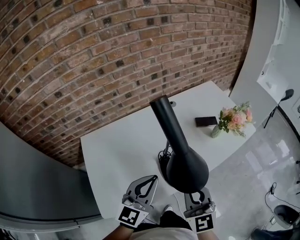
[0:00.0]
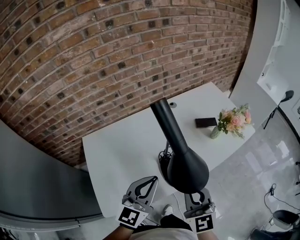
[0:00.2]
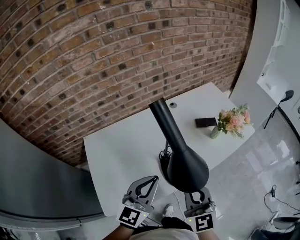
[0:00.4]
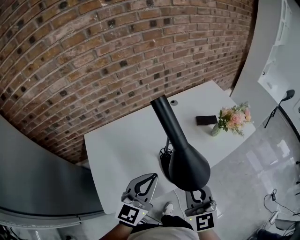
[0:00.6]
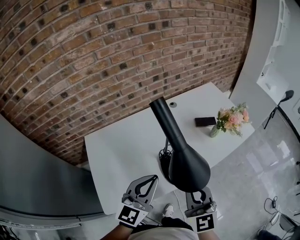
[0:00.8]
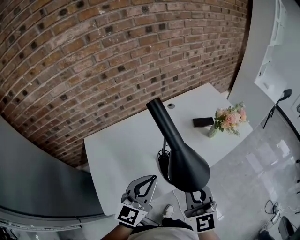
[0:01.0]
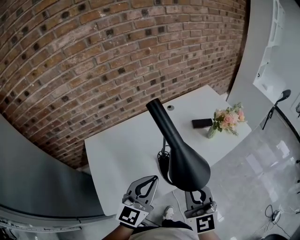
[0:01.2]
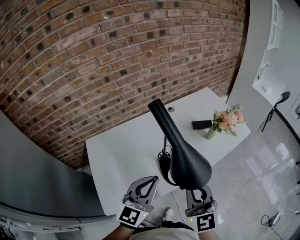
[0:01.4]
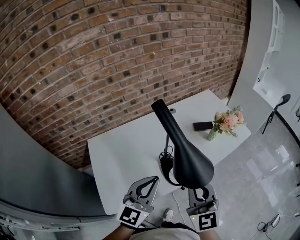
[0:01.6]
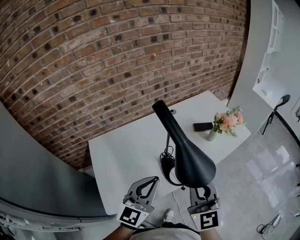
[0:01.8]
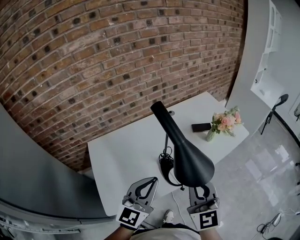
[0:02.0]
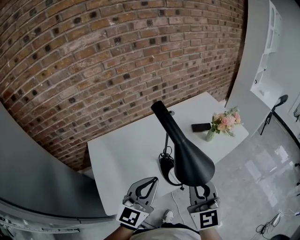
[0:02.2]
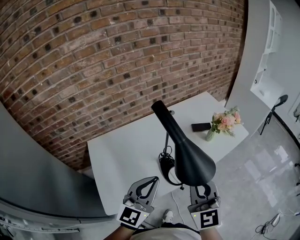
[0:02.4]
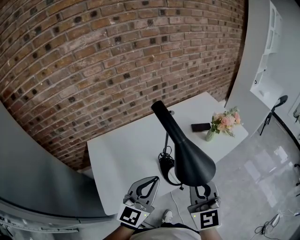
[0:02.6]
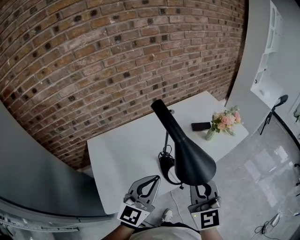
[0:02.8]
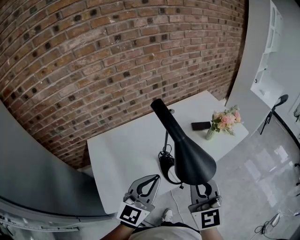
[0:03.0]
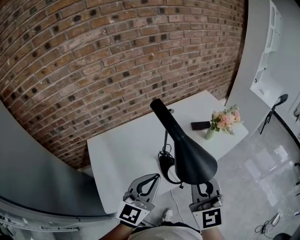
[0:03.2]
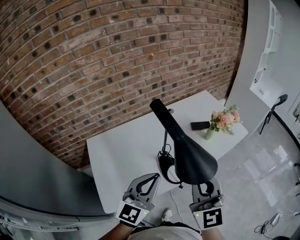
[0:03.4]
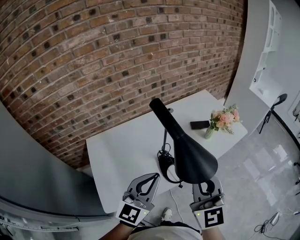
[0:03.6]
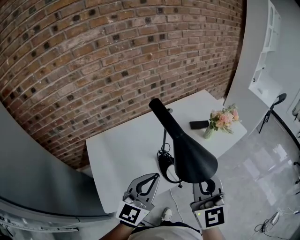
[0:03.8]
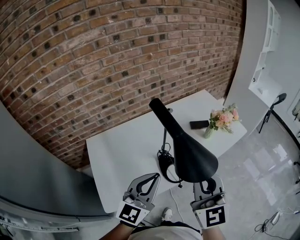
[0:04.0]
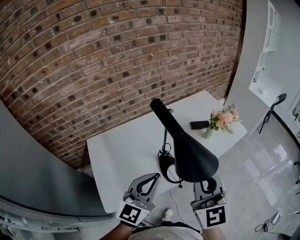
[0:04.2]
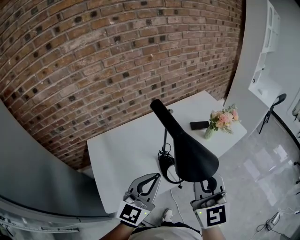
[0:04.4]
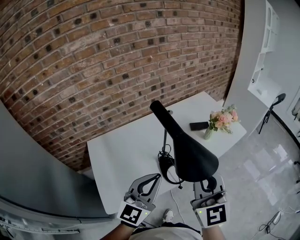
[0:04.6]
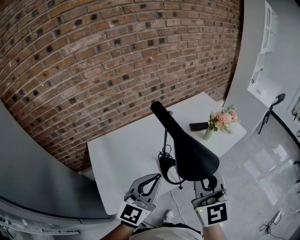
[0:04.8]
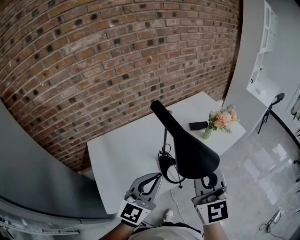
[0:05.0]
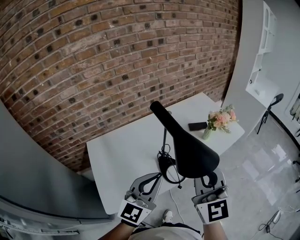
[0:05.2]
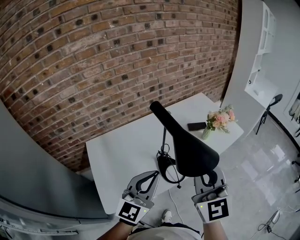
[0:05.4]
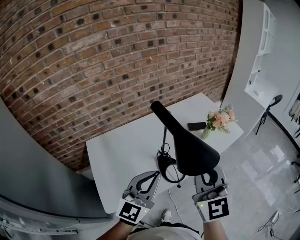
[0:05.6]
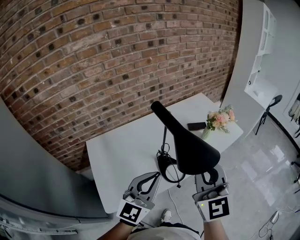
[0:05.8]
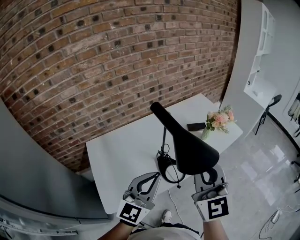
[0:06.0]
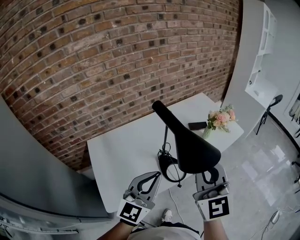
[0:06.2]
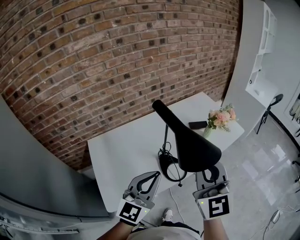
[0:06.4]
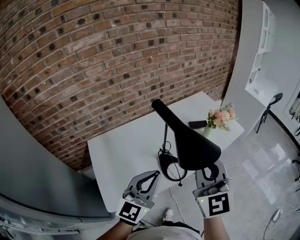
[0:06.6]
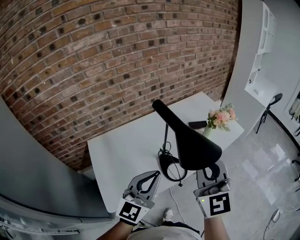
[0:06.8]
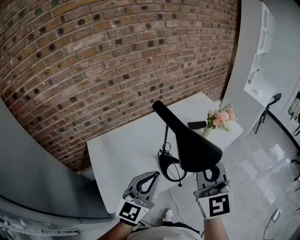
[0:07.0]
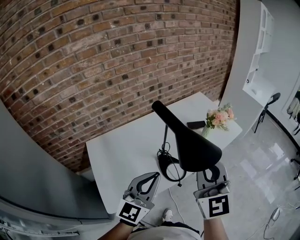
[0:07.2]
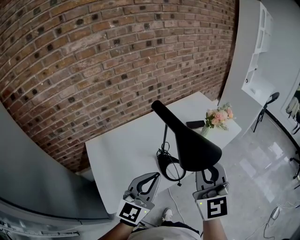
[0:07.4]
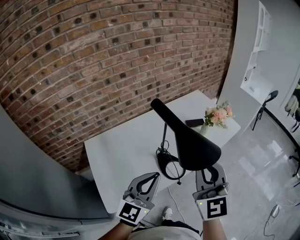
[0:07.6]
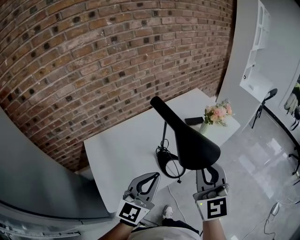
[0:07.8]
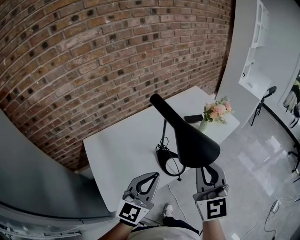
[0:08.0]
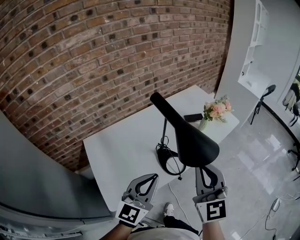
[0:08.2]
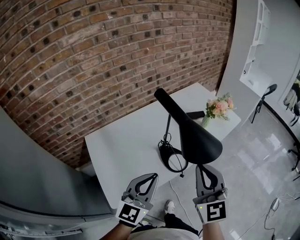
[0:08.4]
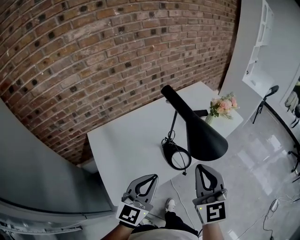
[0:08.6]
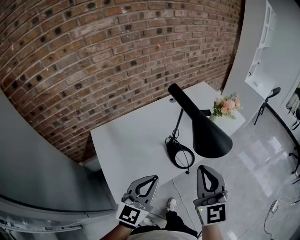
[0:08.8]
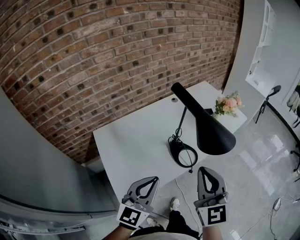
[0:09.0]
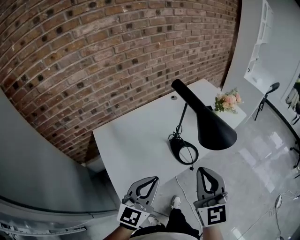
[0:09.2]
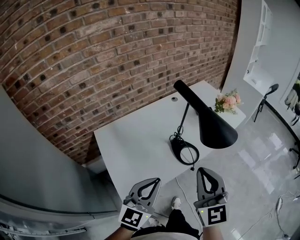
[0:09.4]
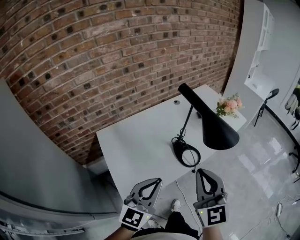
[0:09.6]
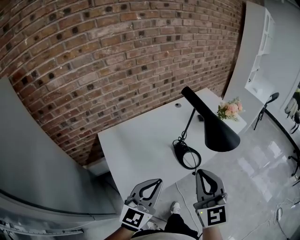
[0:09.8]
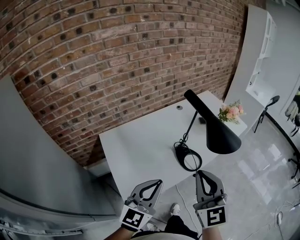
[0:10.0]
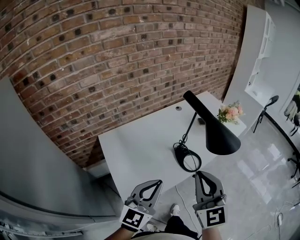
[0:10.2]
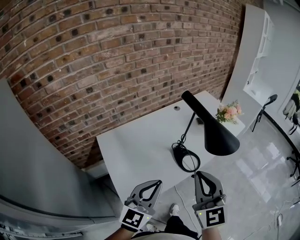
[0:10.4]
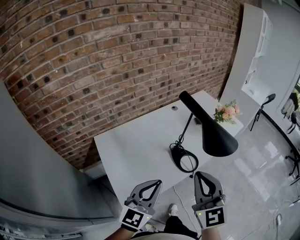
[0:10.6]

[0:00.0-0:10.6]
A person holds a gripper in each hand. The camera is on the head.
0:00.0 to 0:01.6: The left gripper shifts approximately 5 cm upward and backward, while the right gripper heads upward, covering roughly 5 cm.
0:01.6 to 0:03.0: The grippers move only a little.
0:03.0 to 0:04.6: The grippers make only small movements.
0:04.6 to 0:07.6: The grippers move only a little.
0:07.6 to 0:09.0: The right gripper moves backward, downward and to the left, some 10 cm. The left gripper shifts roughly 10 cm backward and to the left.
0:09.0 to 0:10.6: The right gripper shifts approximately 5 cm to the left.

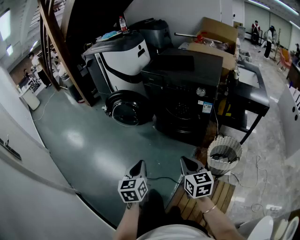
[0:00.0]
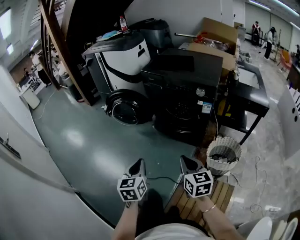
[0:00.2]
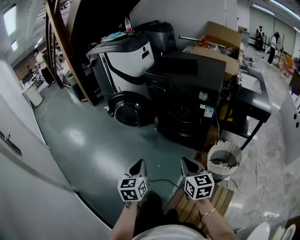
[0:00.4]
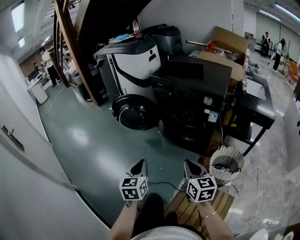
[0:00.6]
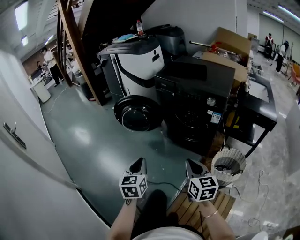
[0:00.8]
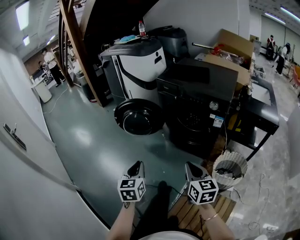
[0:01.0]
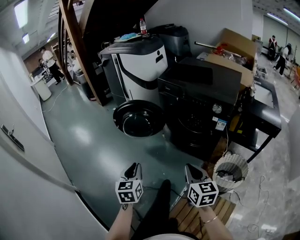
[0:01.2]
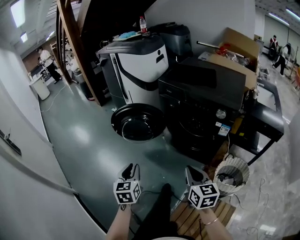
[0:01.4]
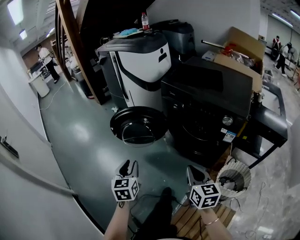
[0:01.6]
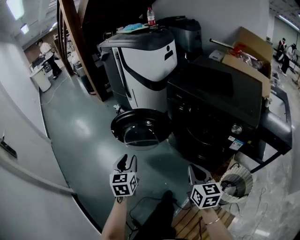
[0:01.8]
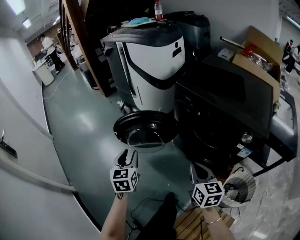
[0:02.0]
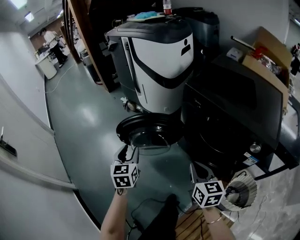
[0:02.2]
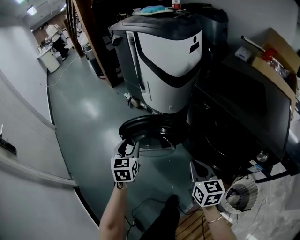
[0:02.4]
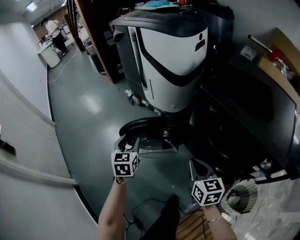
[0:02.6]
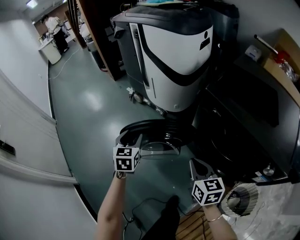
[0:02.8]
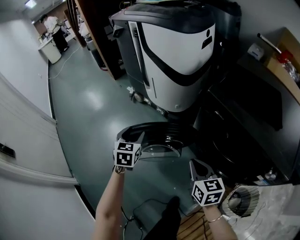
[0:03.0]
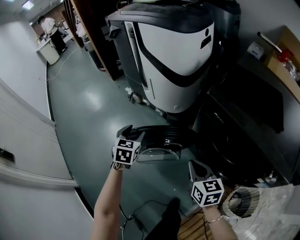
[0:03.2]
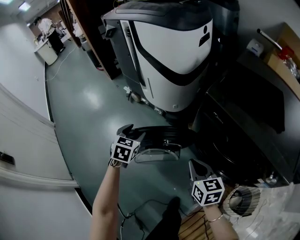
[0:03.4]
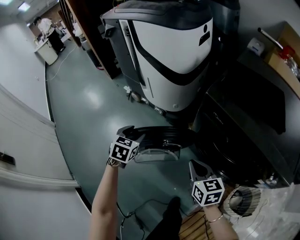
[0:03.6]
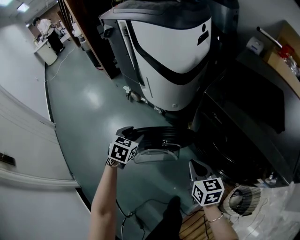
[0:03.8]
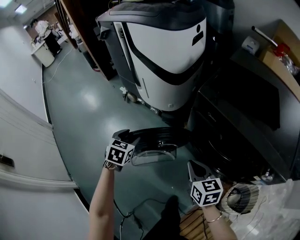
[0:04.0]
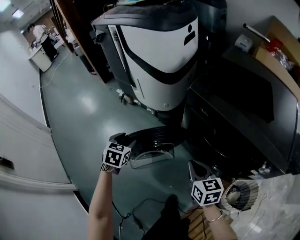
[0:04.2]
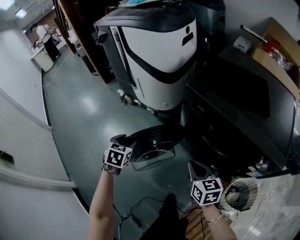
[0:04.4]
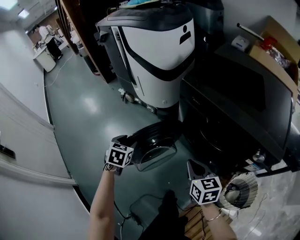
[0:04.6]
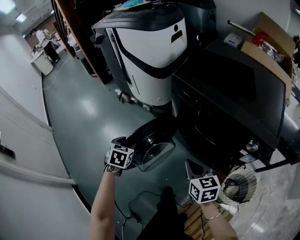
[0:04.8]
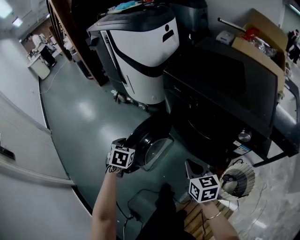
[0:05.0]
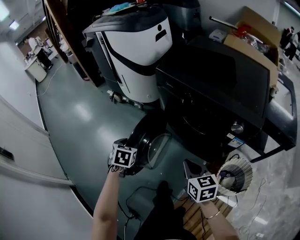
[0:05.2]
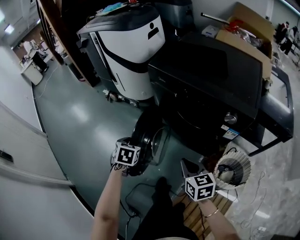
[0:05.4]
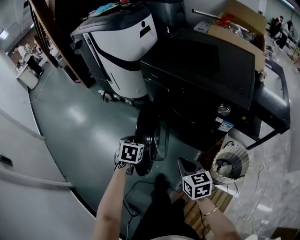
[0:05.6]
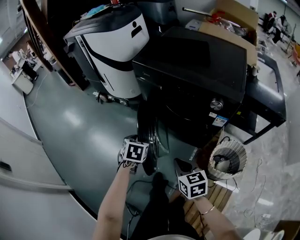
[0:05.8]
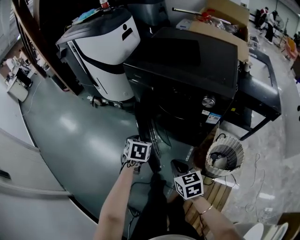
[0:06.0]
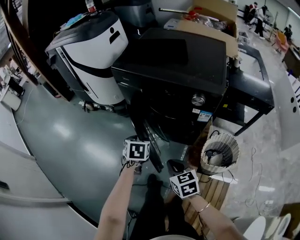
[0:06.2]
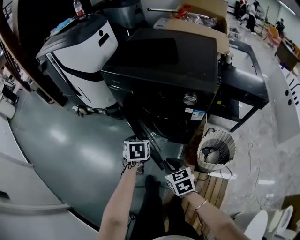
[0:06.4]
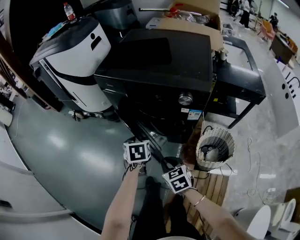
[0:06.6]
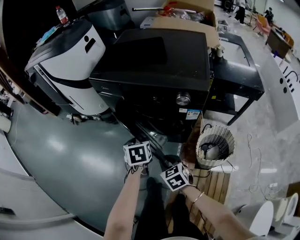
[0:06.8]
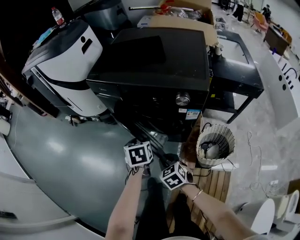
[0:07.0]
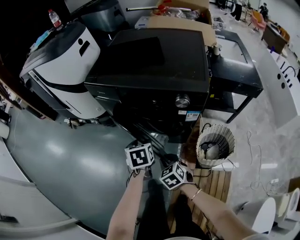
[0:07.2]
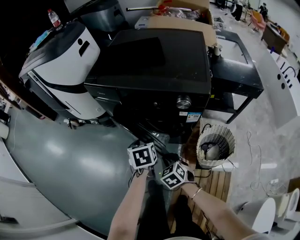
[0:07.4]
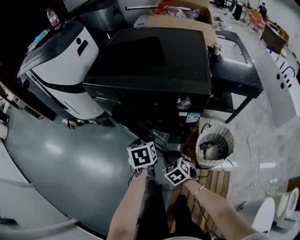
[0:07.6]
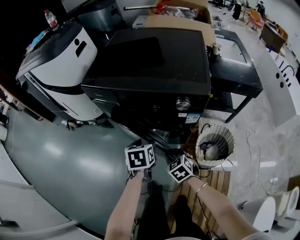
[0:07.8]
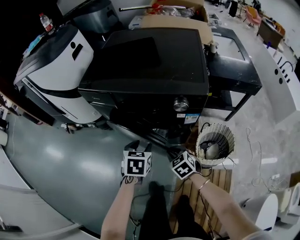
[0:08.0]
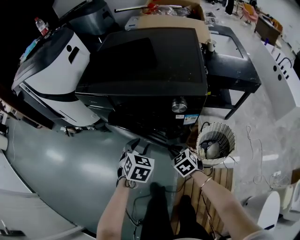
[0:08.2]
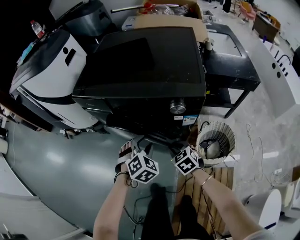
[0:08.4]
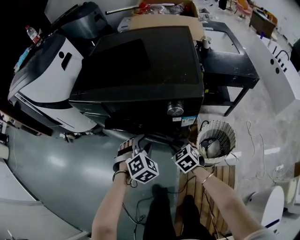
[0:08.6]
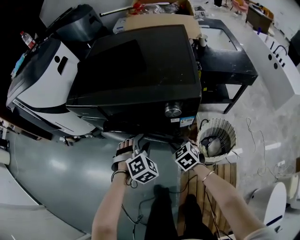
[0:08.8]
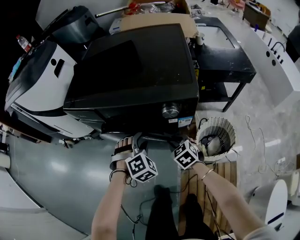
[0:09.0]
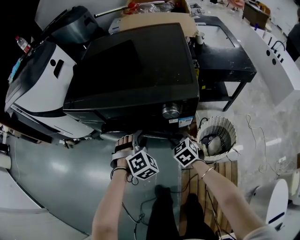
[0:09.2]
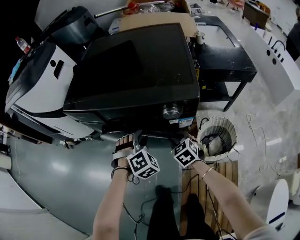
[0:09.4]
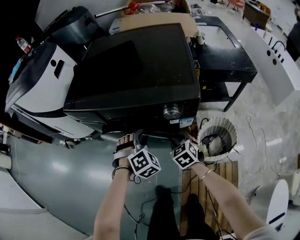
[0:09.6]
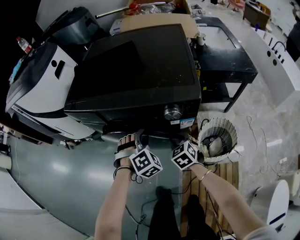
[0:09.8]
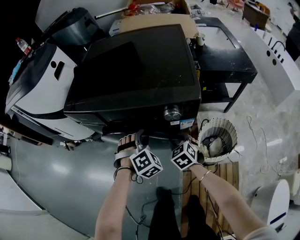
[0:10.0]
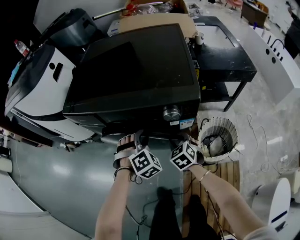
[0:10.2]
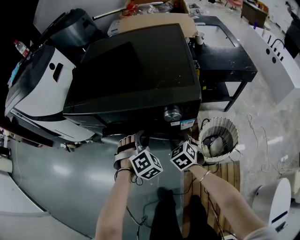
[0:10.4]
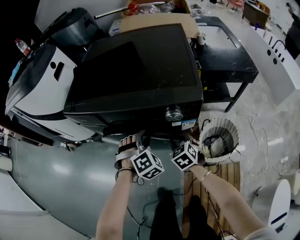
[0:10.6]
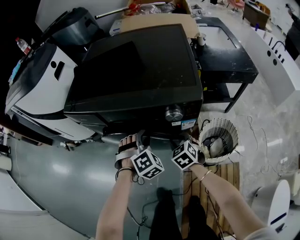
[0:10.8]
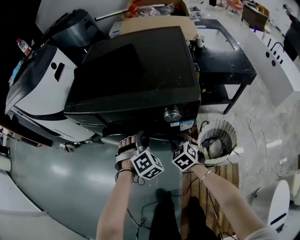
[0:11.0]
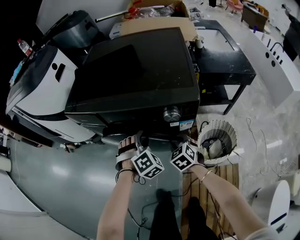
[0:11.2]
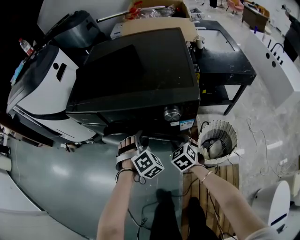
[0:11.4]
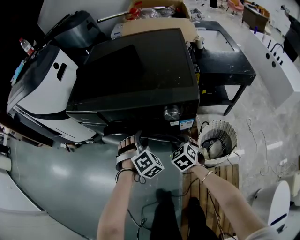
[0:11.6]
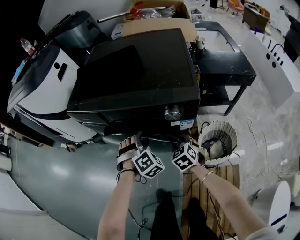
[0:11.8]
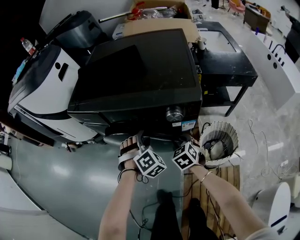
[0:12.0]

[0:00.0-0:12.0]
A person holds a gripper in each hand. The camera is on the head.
0:00.0 to 0:01.6: The right gripper is displaced forward by approximately 20 cm. Meanwhile the left gripper shifts about 25 cm forward and to the left, and opens up.
0:01.6 to 0:03.0: Both grippers are carried forward, approximately 40 cm. The left gripper opens up.
0:03.0 to 0:04.4: The right gripper shifts about 5 cm to the right. The left gripper is displaced backward by about 5 cm.
0:04.4 to 0:06.0: The left gripper moves backward and to the right, some 40 cm; the right gripper heads backward, covering approximately 30 cm.
0:06.0 to 0:07.6: The left gripper moves to the right and forward, some 15 cm, while the right gripper moves forward, downward and to the right, some 15 cm, and changes its angle by roughly 20 degrees.
0:07.6 to 0:09.0: The right gripper shifts approximately 15 cm forward and to the right, while the left gripper travels to the right and forward by roughly 10 cm, and rotates around the line of its fingers by roughly 90 degrees, clockwise from behind.
0:09.0 to 0:12.0: The grippers make only small movements.

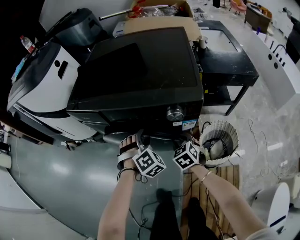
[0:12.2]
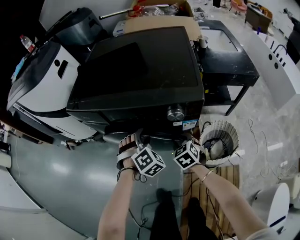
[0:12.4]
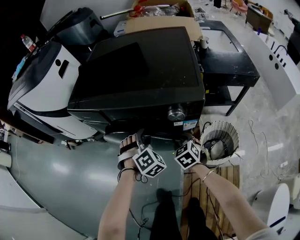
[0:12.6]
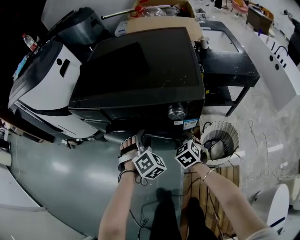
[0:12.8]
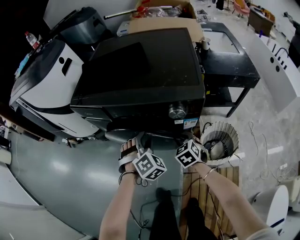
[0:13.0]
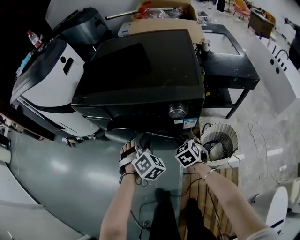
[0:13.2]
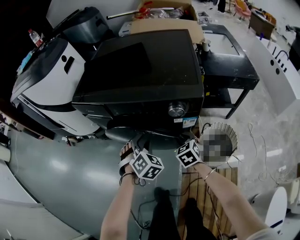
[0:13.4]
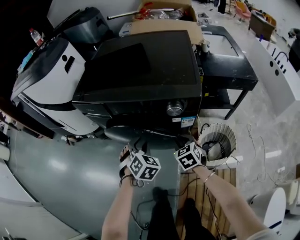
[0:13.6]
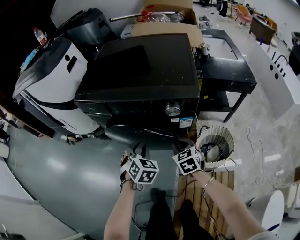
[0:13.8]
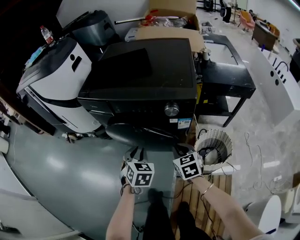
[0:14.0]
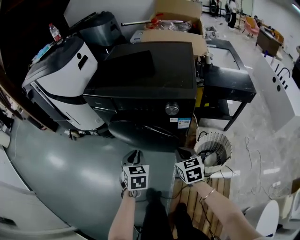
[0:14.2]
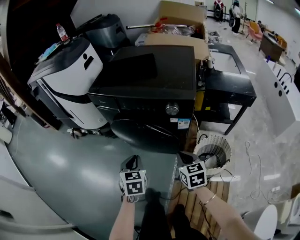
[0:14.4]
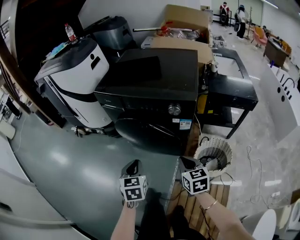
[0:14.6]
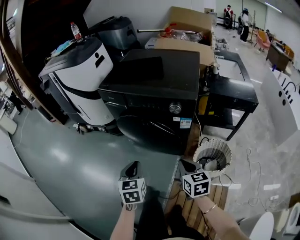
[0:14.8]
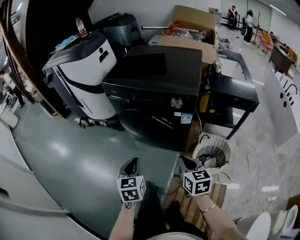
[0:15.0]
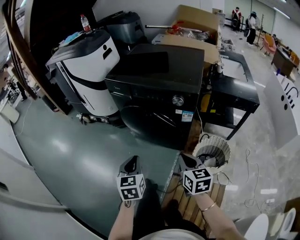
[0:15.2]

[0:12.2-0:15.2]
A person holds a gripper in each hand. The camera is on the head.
0:12.2 to 0:13.8: The grippers both shift backward by about 5 cm. The left gripper rotates roughly 30 degrees.
0:13.8 to 0:15.2: The left gripper is displaced backward by approximately 25 cm, rolls counterclockwise, seen from behind, by about 40 degrees, and closes up, while the right gripper shifts roughly 25 cm backward and upward, and swivels approximately 20 degrees.
